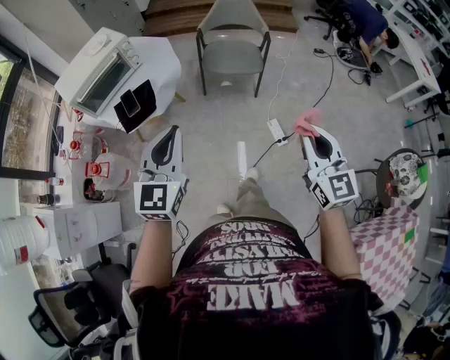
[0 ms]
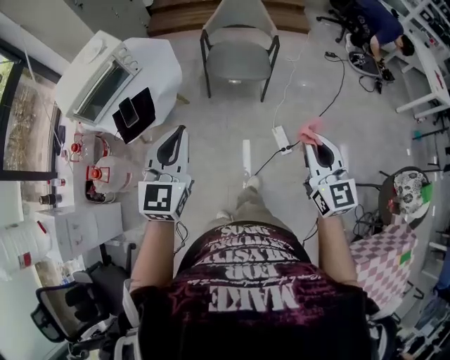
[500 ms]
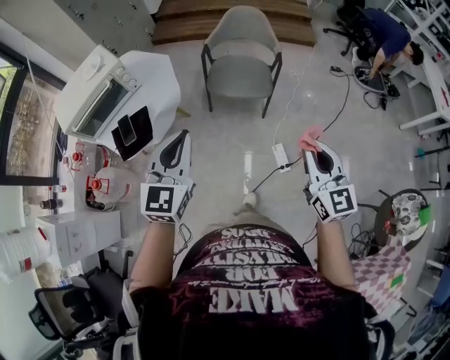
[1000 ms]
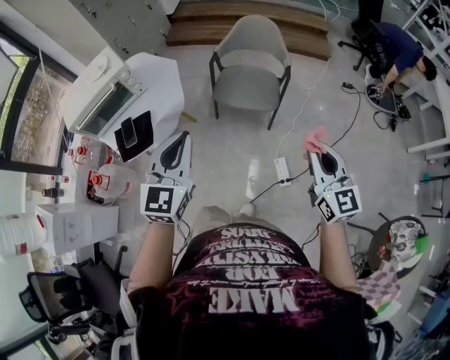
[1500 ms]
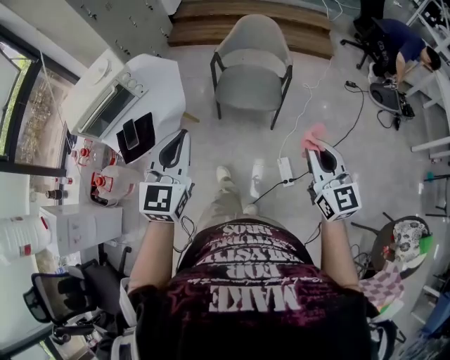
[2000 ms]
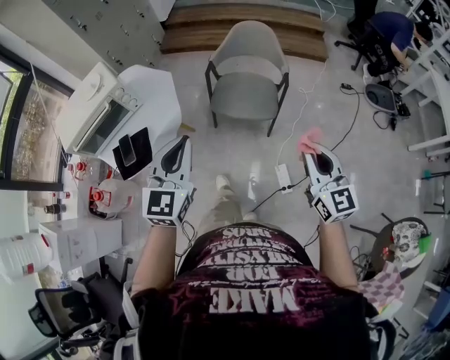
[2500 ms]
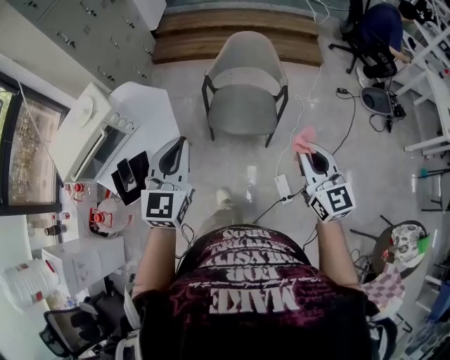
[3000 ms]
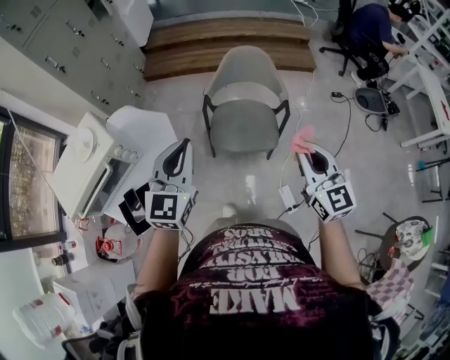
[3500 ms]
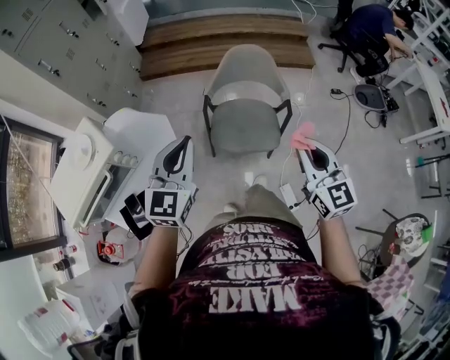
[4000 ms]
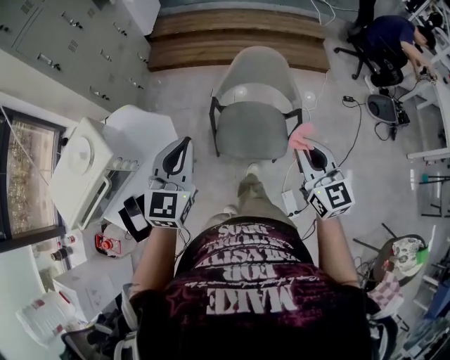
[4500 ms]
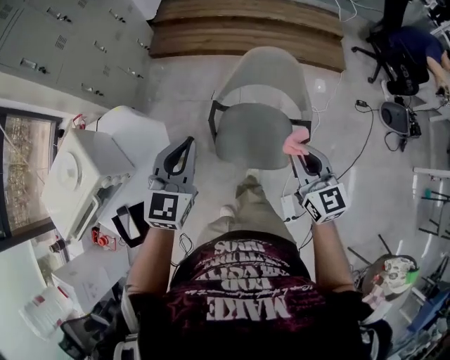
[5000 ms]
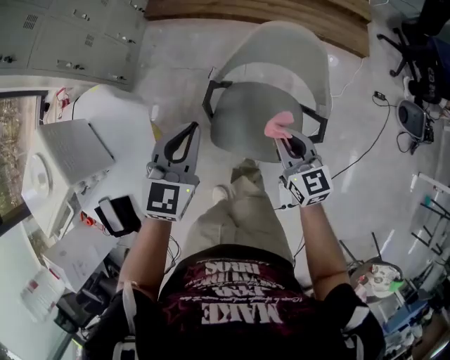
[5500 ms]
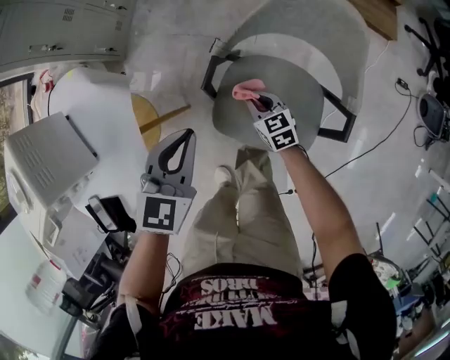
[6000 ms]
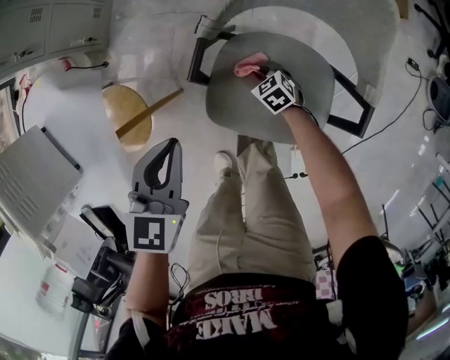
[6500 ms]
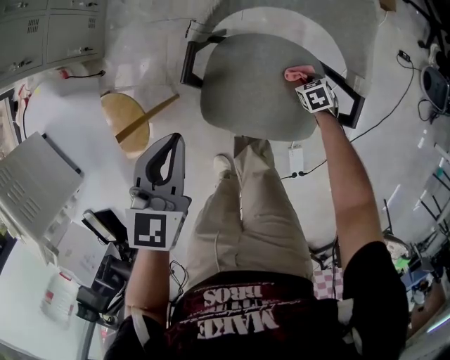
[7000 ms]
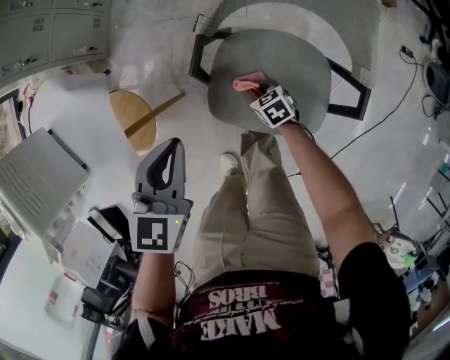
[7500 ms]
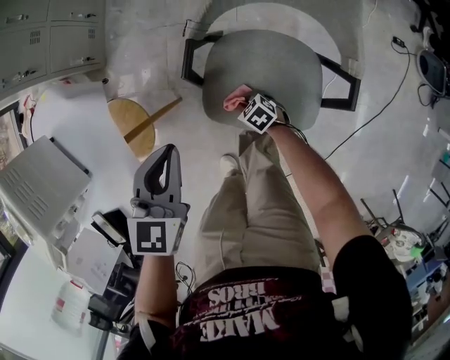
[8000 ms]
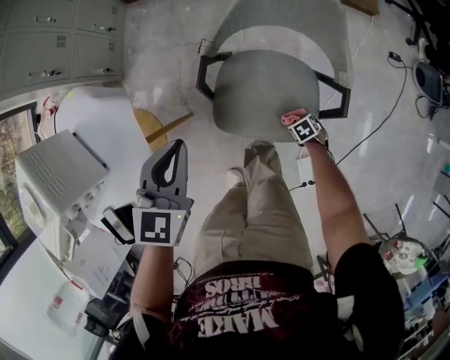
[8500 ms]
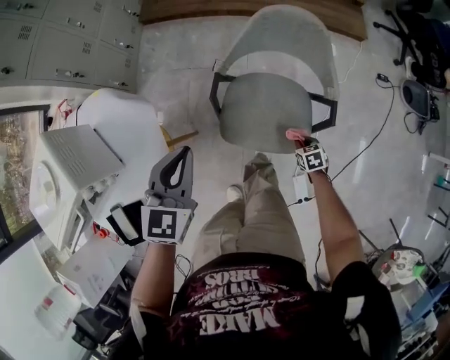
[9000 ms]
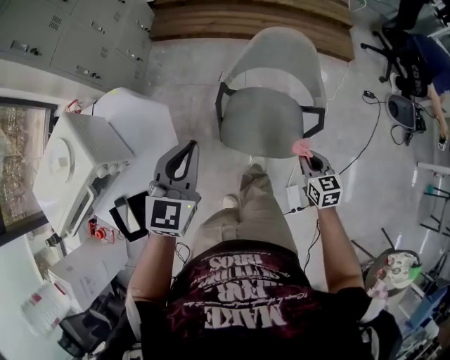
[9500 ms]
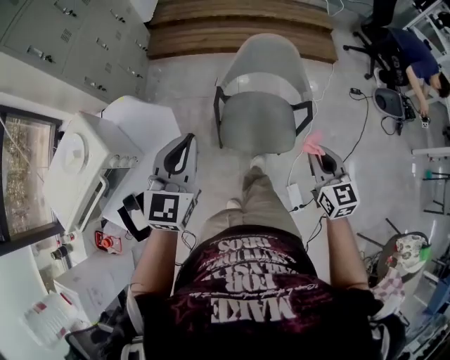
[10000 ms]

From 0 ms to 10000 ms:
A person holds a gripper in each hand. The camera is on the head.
From 0 ms to 2000 ms: The grippers both shift forward and to the right by approximately 25 cm.
From 2000 ms to 4000 ms: The right gripper moves forward and to the left, some 25 cm, while the left gripper travels forward by roughly 30 cm.
From 4000 ms to 6000 ms: The left gripper travels downward and forward by approximately 40 cm, and rotates about 30 degrees, while the right gripper moves downward and forward, about 60 cm, and tilts its fingers some 30 degrees downward.
From 6000 ms to 8000 ms: The right gripper travels downward by roughly 15 cm, and turns by roughly 30 degrees. Meanwhile the left gripper moves roughly 5 cm.
From 8000 ms to 10000 ms: The right gripper moves upward, approximately 50 cm, and points its fingers about 40 degrees further upward. The left gripper is displaced upward by approximately 30 cm, and swivels about 30 degrees.

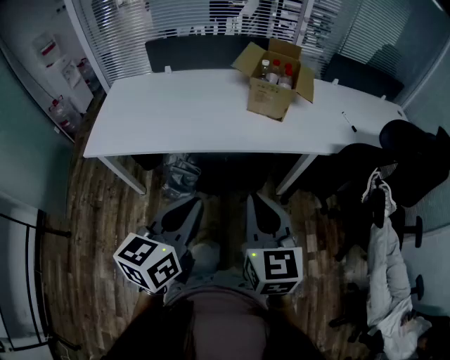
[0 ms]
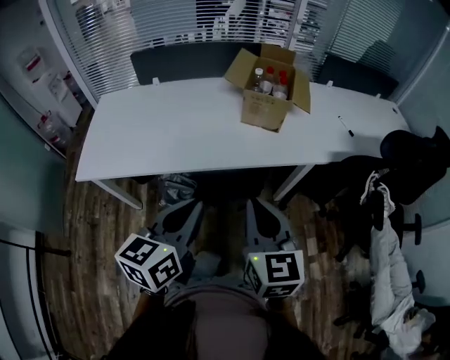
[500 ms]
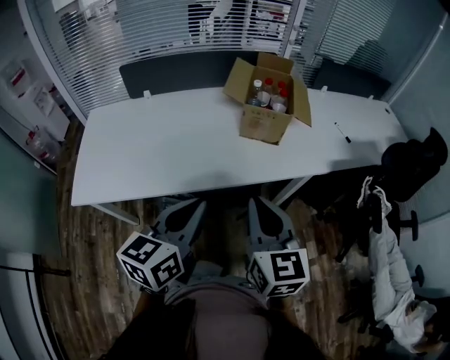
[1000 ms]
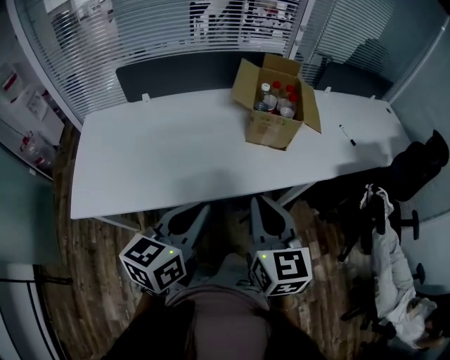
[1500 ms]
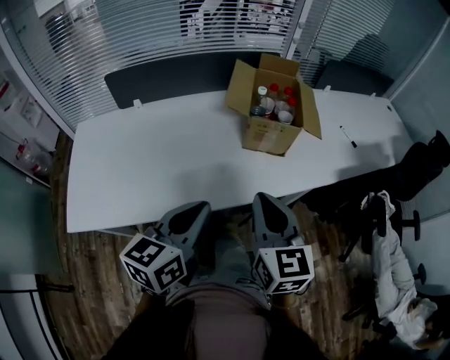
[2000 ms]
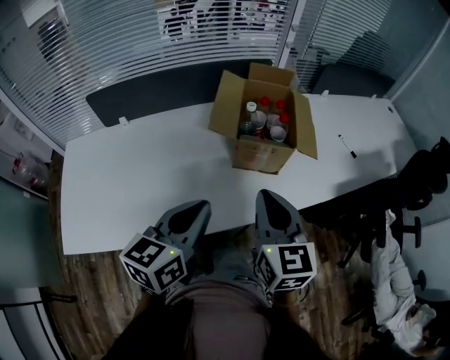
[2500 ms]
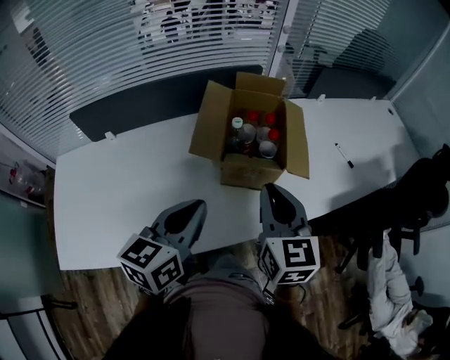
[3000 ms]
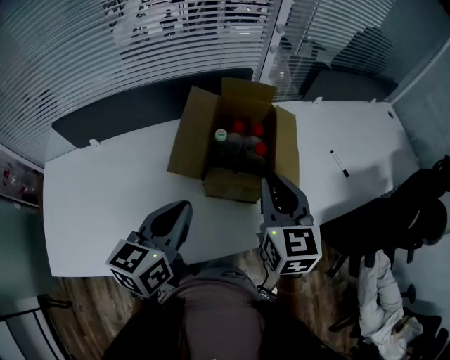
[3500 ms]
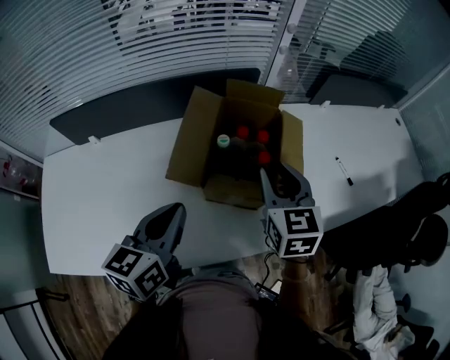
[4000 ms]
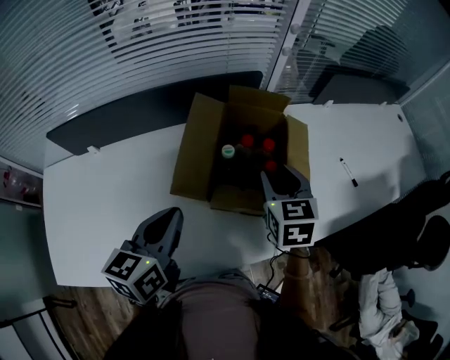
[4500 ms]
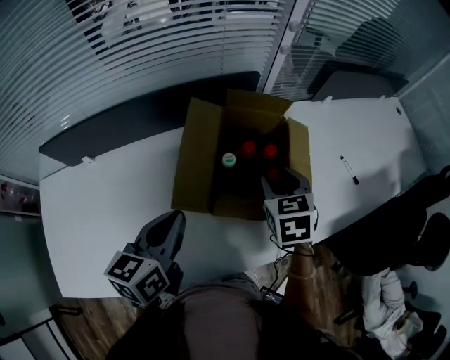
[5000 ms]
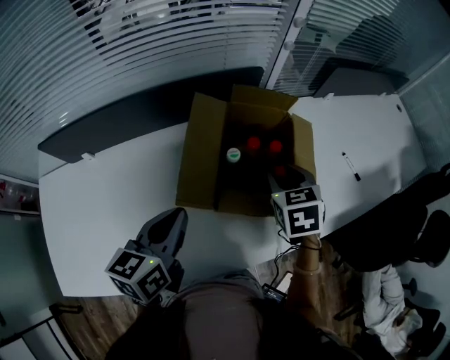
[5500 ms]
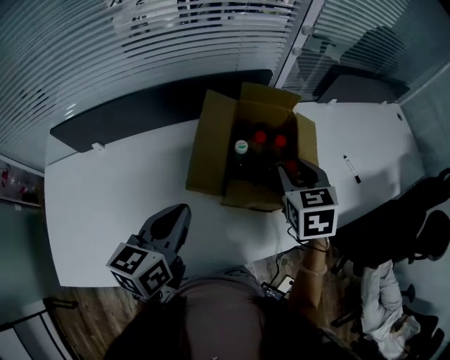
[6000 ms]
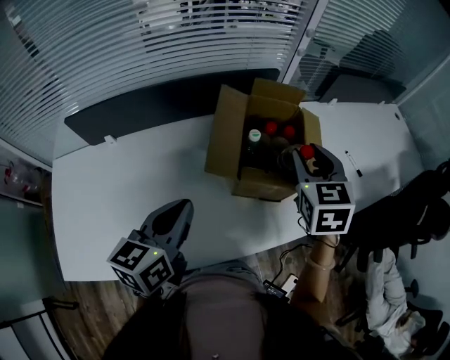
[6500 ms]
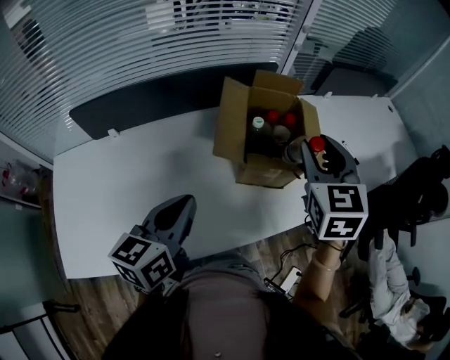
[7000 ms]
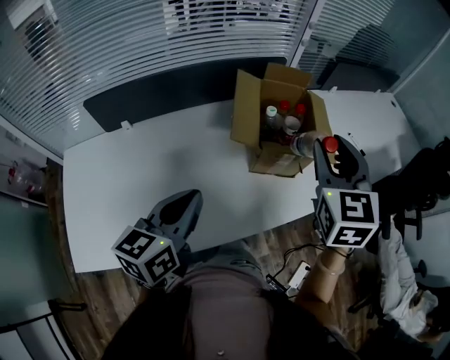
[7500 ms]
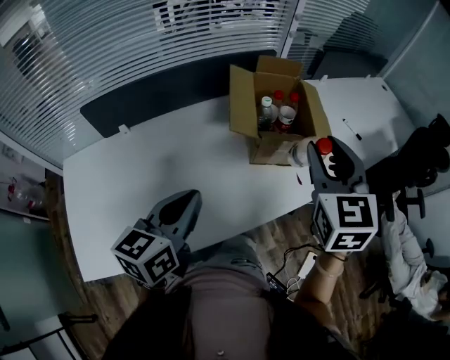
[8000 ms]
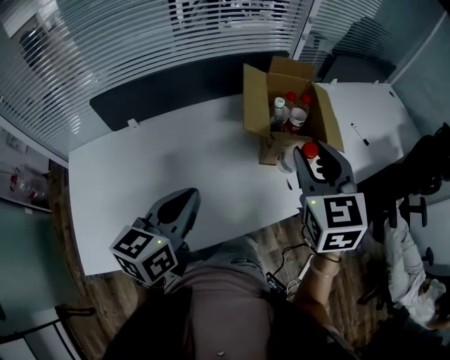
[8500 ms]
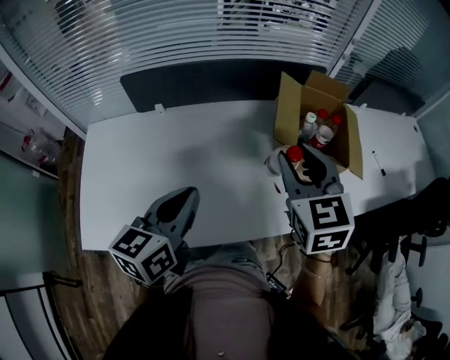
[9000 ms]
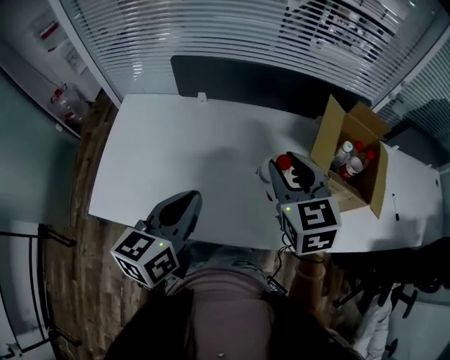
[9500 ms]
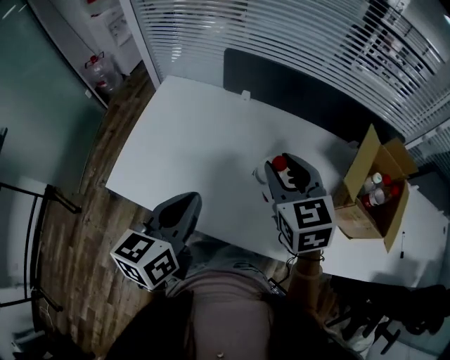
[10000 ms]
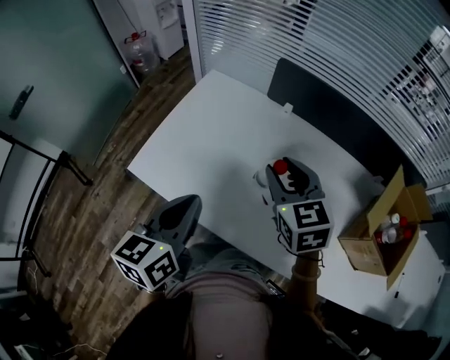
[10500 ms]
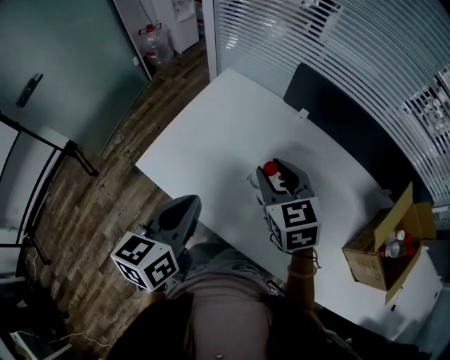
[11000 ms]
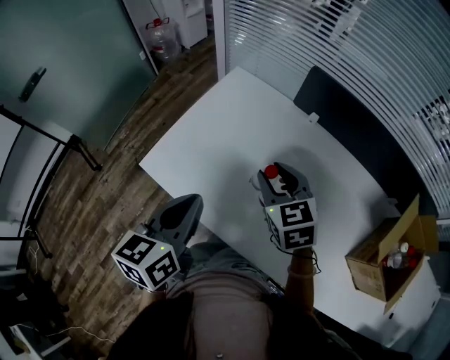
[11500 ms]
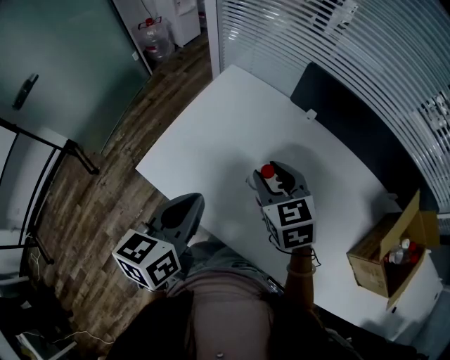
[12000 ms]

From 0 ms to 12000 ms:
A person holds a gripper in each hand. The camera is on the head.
From 0 ms to 2000 ms: The right gripper goes about 25 cm forward and to the left, while the left gripper travels forward by about 25 cm.
From 2000 ms to 4000 ms: The two grippers go about 30 cm forward. The right gripper opens its fingers.
From 4000 ms to 6000 ms: The left gripper changes place by approximately 5 cm.
From 6000 ms to 8000 ms: The right gripper is displaced backward and upward by roughly 25 cm, and rotates about 30 degrees, while the left gripper shifts approximately 15 cm backward.
From 8000 ms to 10000 ms: The right gripper shifts by approximately 35 cm, and changes its angle by some 50 degrees, while the left gripper changes place by about 20 cm, and rotates some 40 degrees.
From 10000 ms to 12000 ms: The right gripper heads to the left, downward and forward, covering approximately 20 cm, and turns by some 20 degrees, while the left gripper goes some 15 cm to the left and forward.

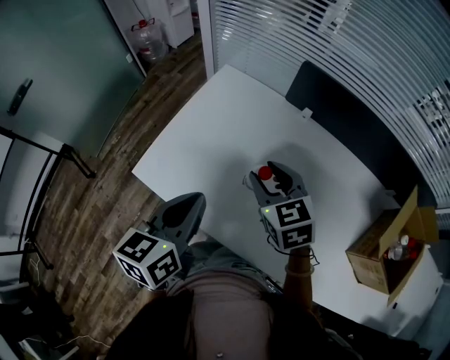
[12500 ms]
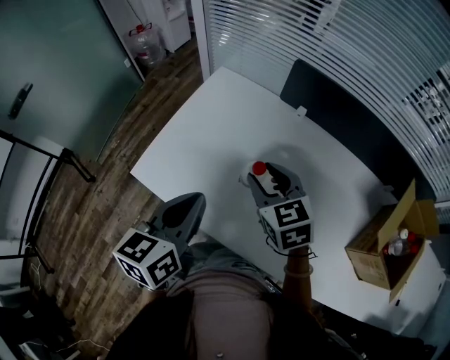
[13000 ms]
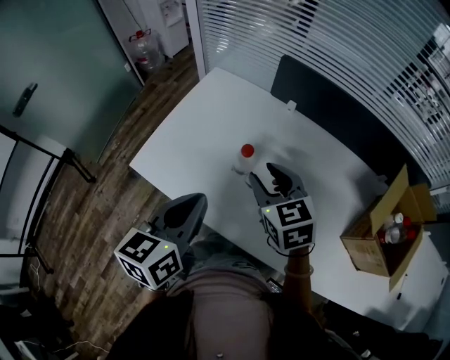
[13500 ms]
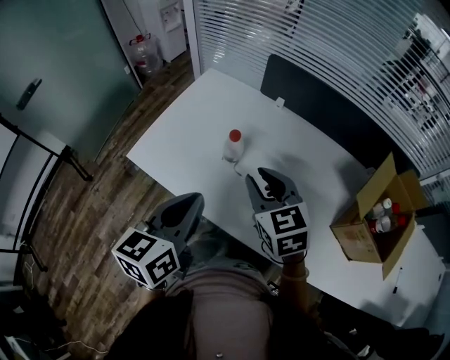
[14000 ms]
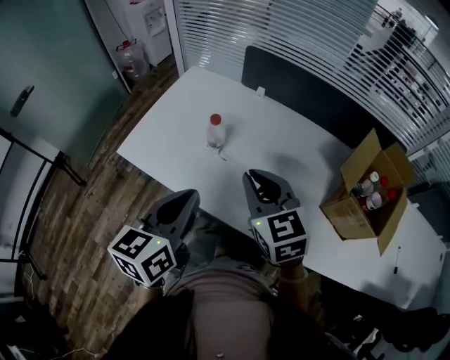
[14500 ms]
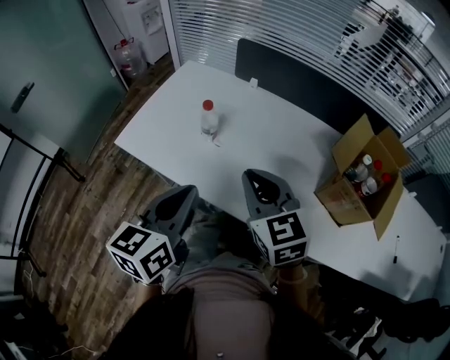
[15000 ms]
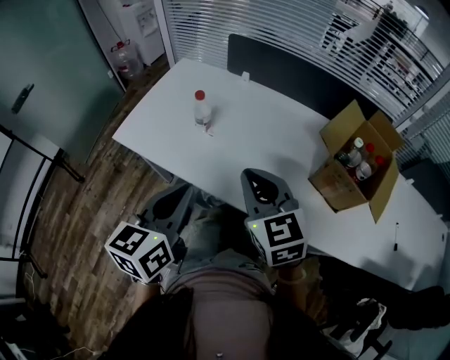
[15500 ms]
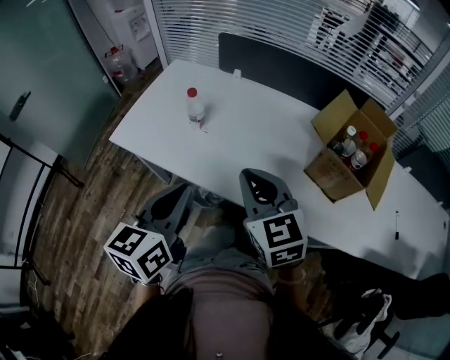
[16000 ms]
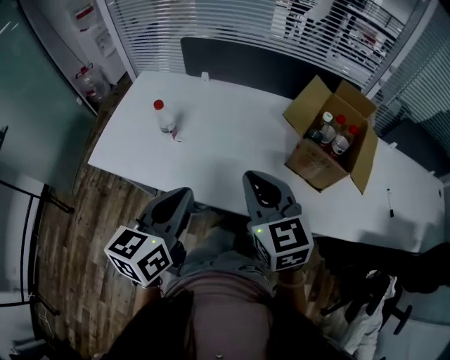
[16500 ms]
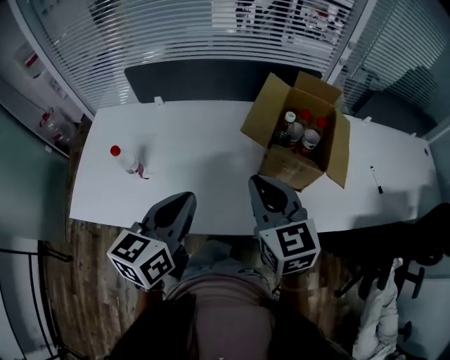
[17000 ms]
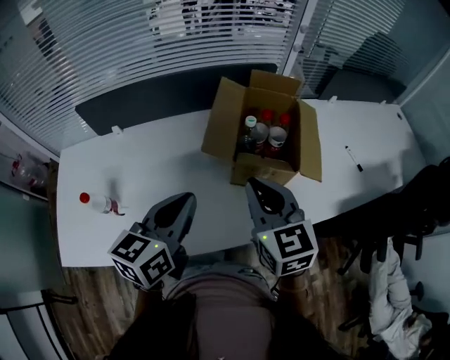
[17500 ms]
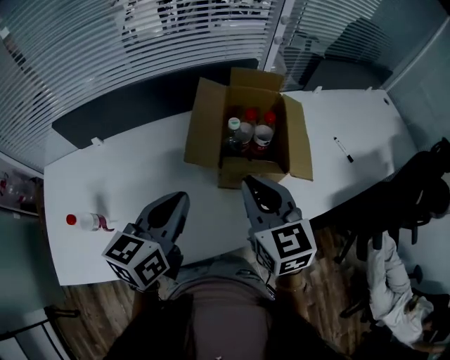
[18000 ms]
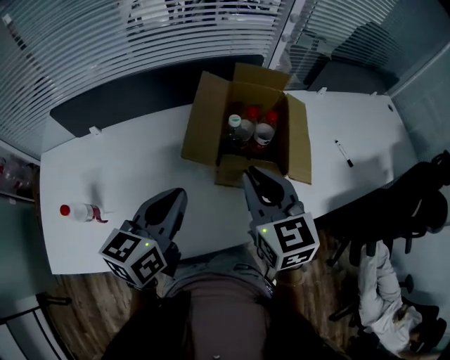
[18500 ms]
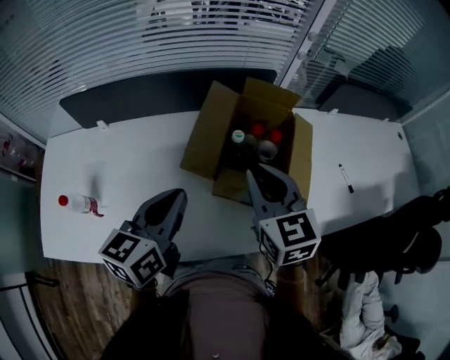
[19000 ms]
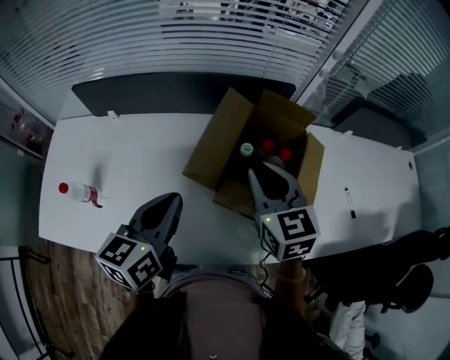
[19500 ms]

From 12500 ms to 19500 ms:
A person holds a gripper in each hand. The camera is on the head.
From 12500 ms to 14500 ms: The right gripper shifts about 25 cm backward, to the right and upward, and closes; the left gripper goes some 20 cm backward and to the right.
From 14500 ms to 16000 ms: The grippers both shift backward and to the right by some 15 cm.
From 16000 ms to 17500 ms: The left gripper changes place by approximately 30 cm, and rotates approximately 40 degrees; the right gripper shifts by roughly 25 cm, and turns by about 40 degrees.
From 17500 ms to 19500 ms: The right gripper heads forward, covering roughly 15 cm. Meanwhile the left gripper shifts approximately 10 cm forward.
